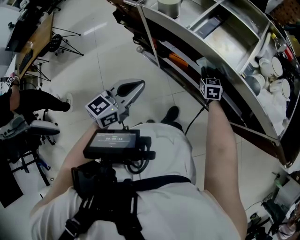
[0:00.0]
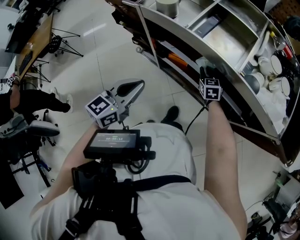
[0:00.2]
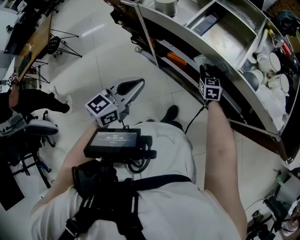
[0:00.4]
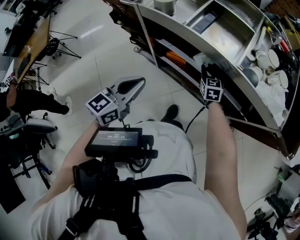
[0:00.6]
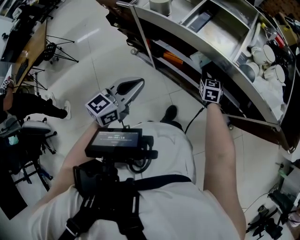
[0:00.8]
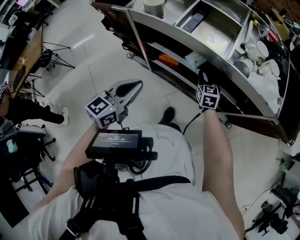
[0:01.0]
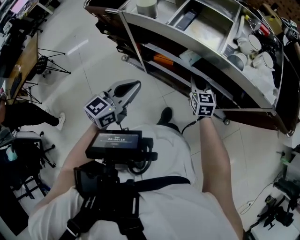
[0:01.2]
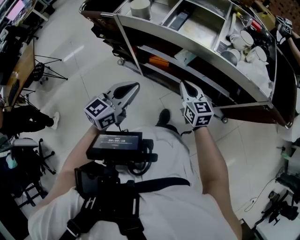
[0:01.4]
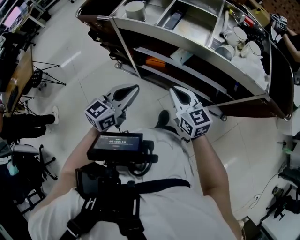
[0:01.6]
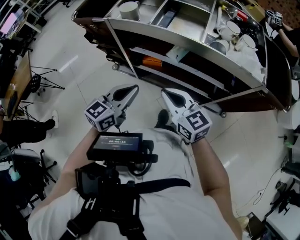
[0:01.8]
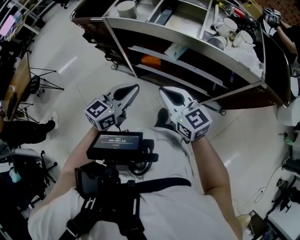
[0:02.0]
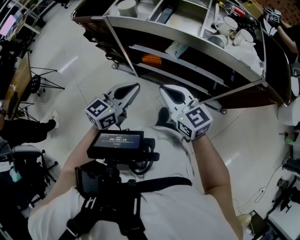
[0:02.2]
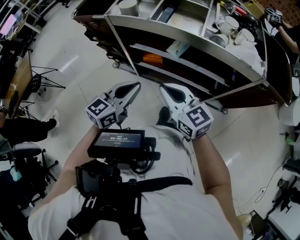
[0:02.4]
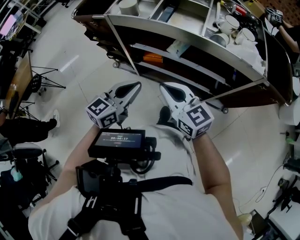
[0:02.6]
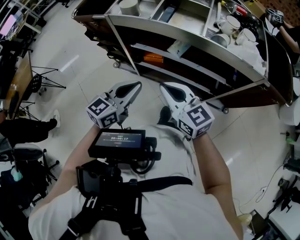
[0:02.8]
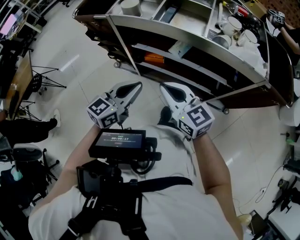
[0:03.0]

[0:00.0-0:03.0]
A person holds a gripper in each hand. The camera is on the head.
0:00.0 to 0:01.6: The right gripper moves backward and upward, approximately 30 cm, and turns by about 30 degrees.
0:01.6 to 0:03.0: The right gripper shifts approximately 5 cm upward.

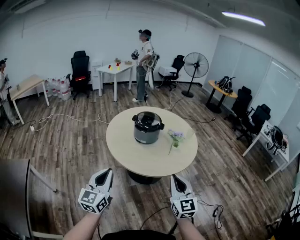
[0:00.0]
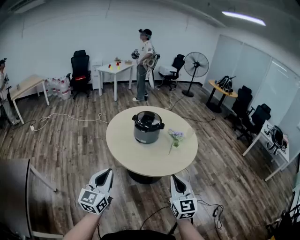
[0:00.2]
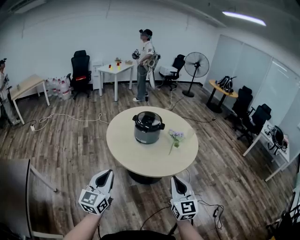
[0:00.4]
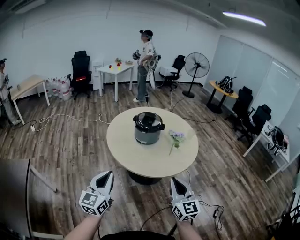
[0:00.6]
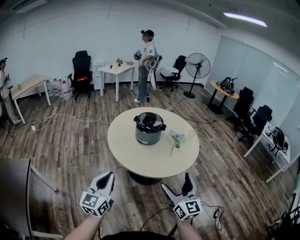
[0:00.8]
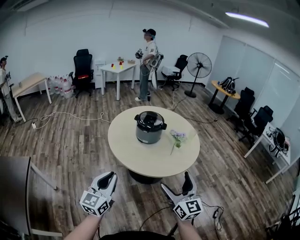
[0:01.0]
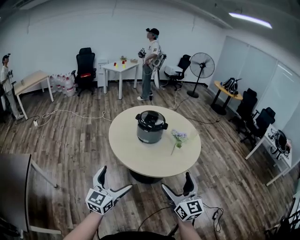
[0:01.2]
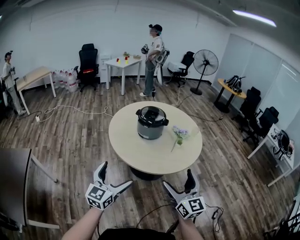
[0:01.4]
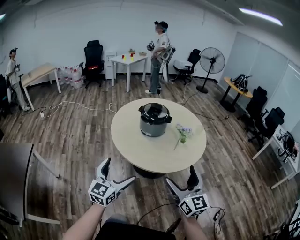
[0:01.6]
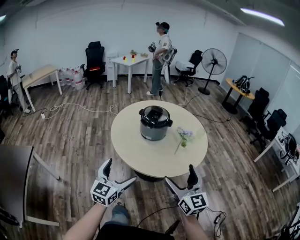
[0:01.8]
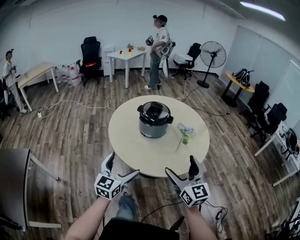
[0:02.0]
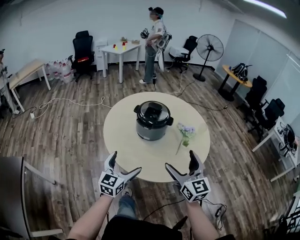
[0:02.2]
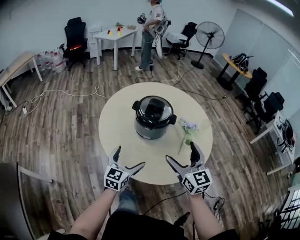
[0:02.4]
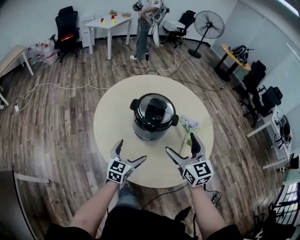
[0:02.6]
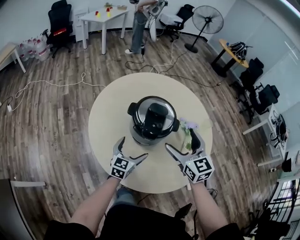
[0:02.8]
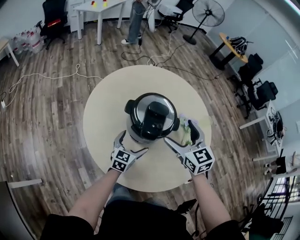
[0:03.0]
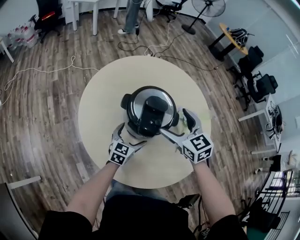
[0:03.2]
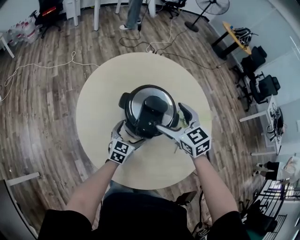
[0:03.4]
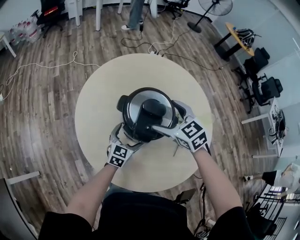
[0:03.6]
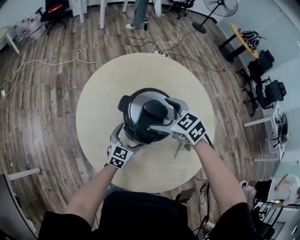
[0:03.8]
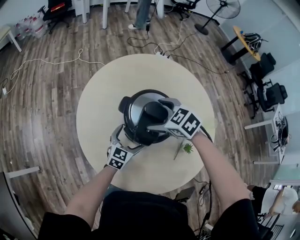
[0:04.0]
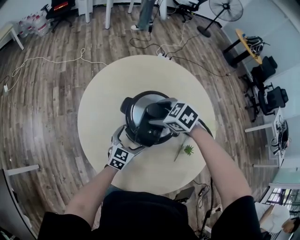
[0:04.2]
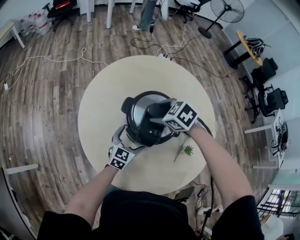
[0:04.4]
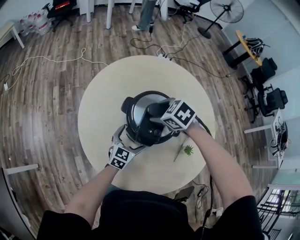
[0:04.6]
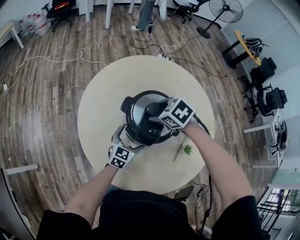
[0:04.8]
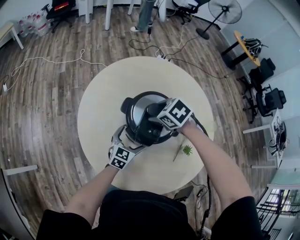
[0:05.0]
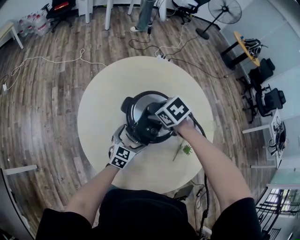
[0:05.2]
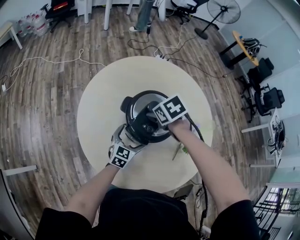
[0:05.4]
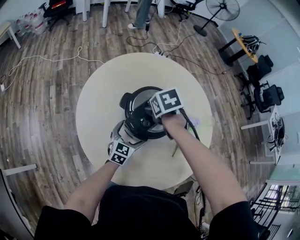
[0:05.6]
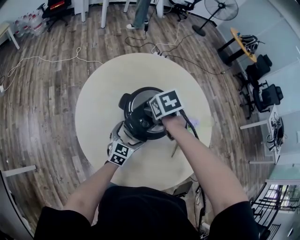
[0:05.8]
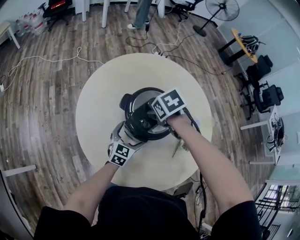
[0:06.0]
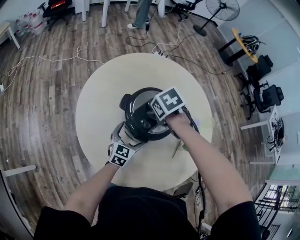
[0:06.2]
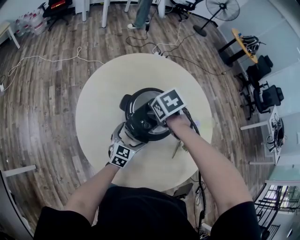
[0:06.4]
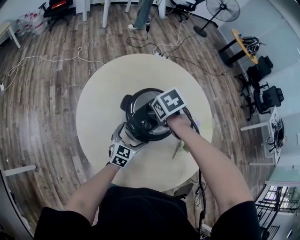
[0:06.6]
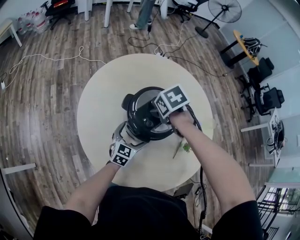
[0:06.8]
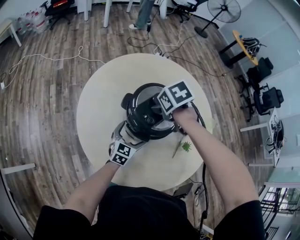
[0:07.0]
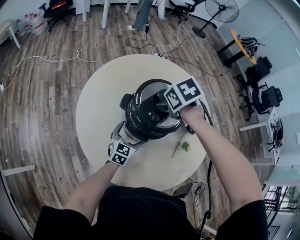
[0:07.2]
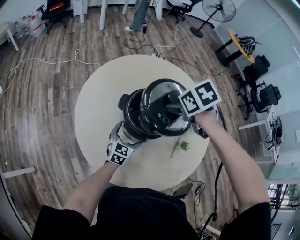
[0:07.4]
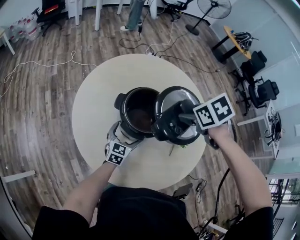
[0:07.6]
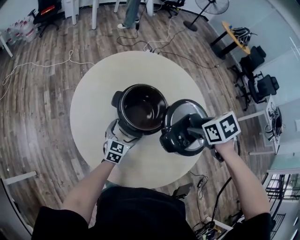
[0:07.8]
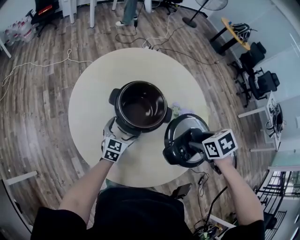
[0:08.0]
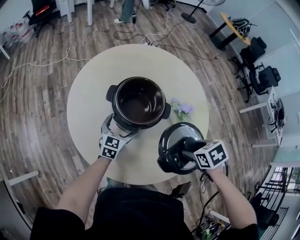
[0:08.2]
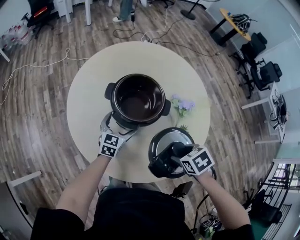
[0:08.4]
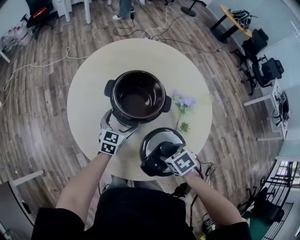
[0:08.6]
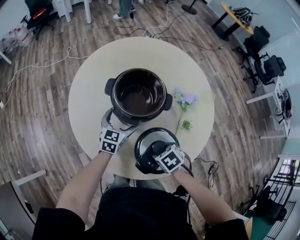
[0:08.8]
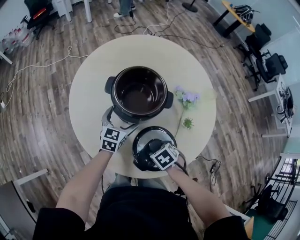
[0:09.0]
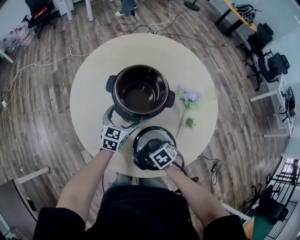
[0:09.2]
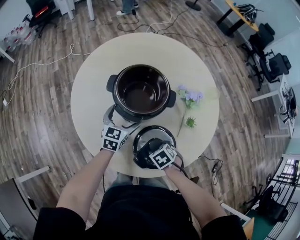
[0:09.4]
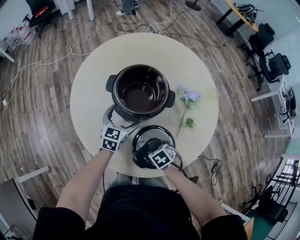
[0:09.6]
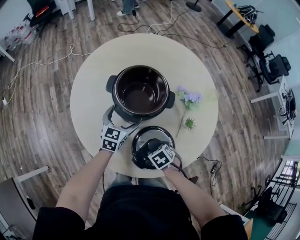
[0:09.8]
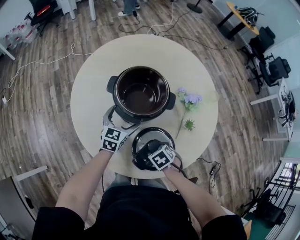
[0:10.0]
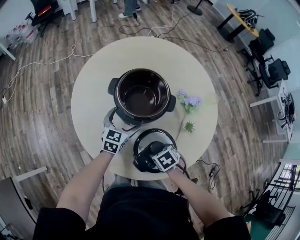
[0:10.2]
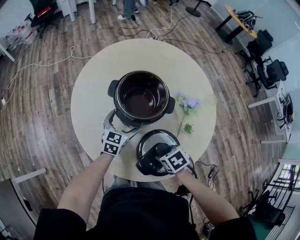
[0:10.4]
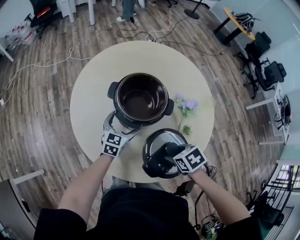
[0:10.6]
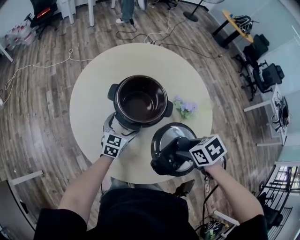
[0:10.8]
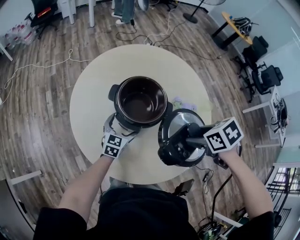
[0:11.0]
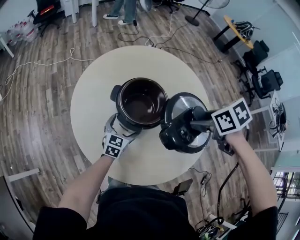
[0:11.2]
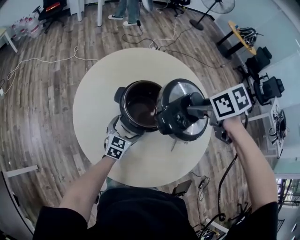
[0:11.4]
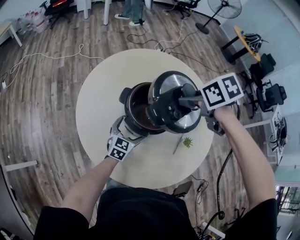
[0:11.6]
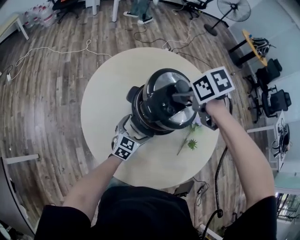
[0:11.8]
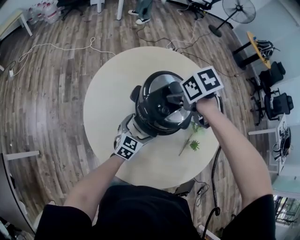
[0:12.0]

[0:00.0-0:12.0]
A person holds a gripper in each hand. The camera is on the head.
0:00.0 to 0:01.6: The right gripper changes place by about 5 cm, and opens its fingers. The left gripper travels to the right and downward by about 10 cm, and opens up.
0:01.6 to 0:03.0: Both grippers are carried forward, about 50 cm. The right gripper turns by some 30 degrees. Meanwhile the left gripper shifts some 25 cm downward, and rotates approximately 30 degrees.
0:03.0 to 0:04.4: The right gripper is displaced forward, downward and to the left by some 20 cm, points its fingers some 40 degrees further downward, and closes up. Meanwhile the left gripper changes place by some 5 cm.
0:04.4 to 0:06.0: The right gripper turns by approximately 30 degrees.
0:06.0 to 0:07.6: The right gripper changes place by roughly 15 cm.
0:07.6 to 0:09.0: The right gripper heads downward, covering roughly 25 cm.
0:09.0 to 0:10.4: The grippers make only small movements.
0:10.4 to 0:12.0: The right gripper shifts by approximately 35 cm.

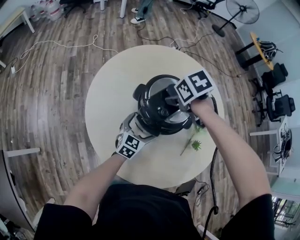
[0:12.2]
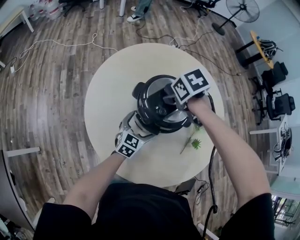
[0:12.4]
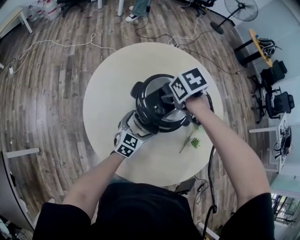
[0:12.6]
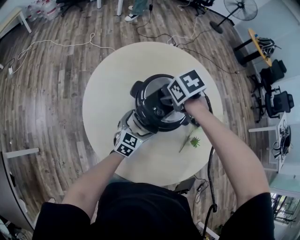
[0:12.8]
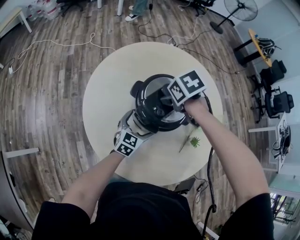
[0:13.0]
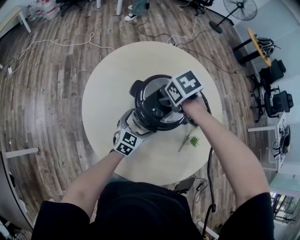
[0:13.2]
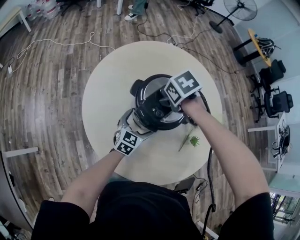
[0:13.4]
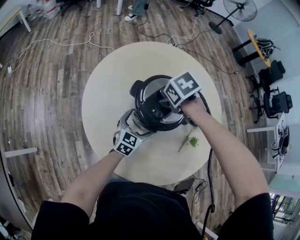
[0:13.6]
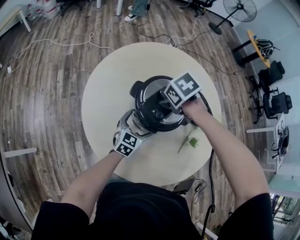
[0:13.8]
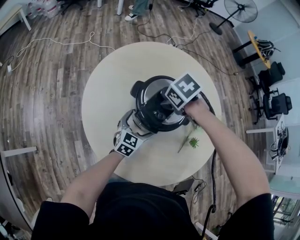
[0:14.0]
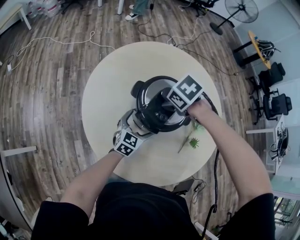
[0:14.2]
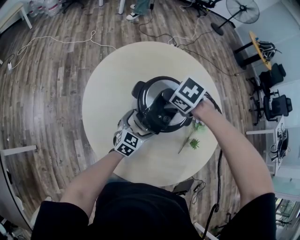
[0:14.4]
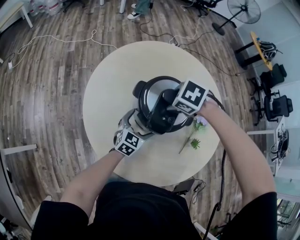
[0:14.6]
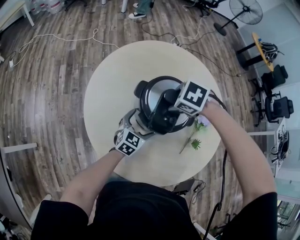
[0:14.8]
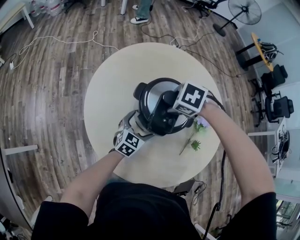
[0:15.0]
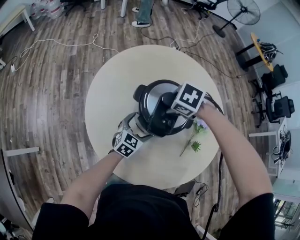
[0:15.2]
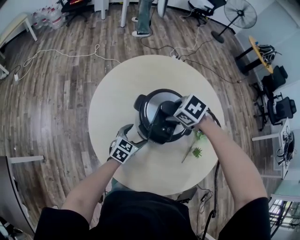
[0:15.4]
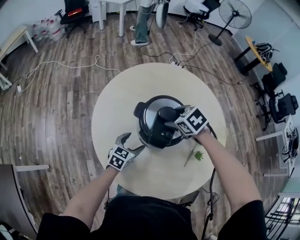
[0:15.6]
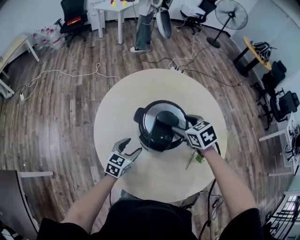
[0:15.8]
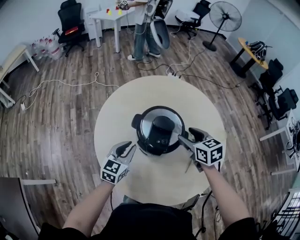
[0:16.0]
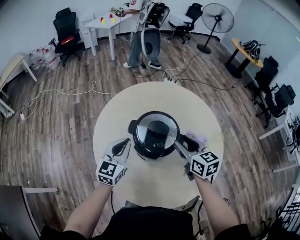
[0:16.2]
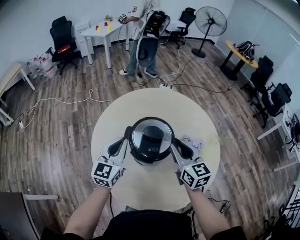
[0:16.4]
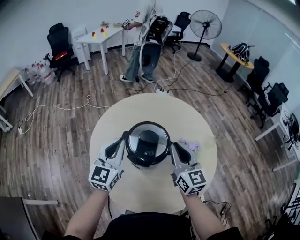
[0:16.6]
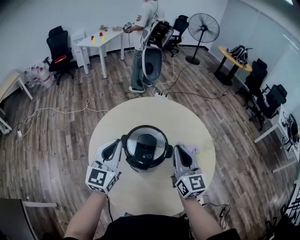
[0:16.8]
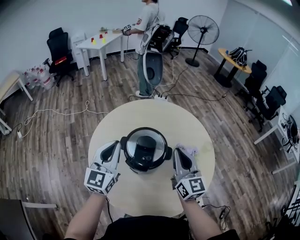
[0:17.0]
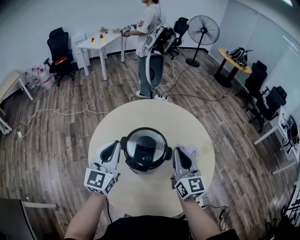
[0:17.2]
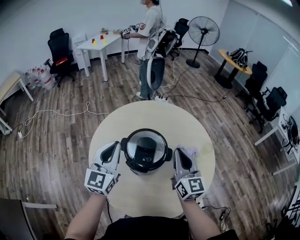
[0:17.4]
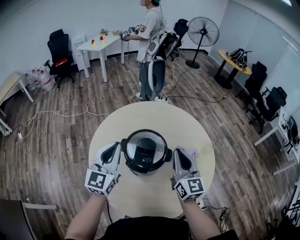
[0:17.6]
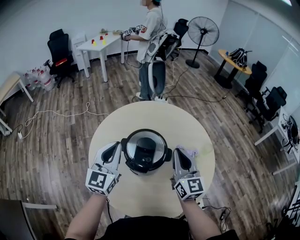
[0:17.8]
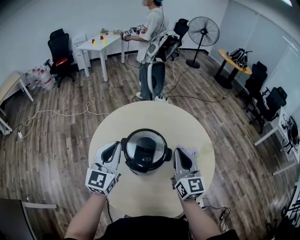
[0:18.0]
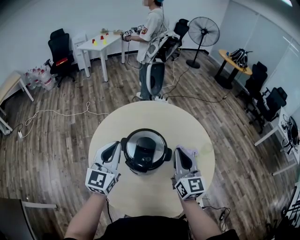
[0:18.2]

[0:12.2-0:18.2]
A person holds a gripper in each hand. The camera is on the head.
0:12.2 to 0:13.8: The grippers stay close to where they were, moving slightly.
0:13.8 to 0:15.2: The right gripper swivels approximately 30 degrees.
0:15.2 to 0:16.6: The right gripper goes approximately 20 cm upward, tips its fingers upward by some 80 degrees, and closes its fingers. The left gripper moves upward, roughly 30 cm, rotates about 30 degrees, and closes.
0:16.6 to 0:18.2: There are only small adjustments of the grippers.

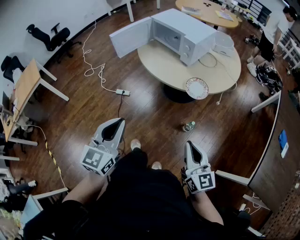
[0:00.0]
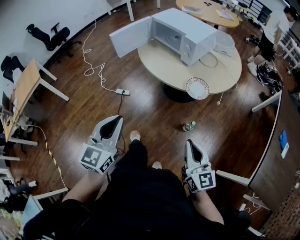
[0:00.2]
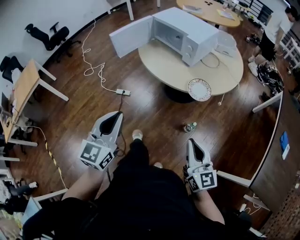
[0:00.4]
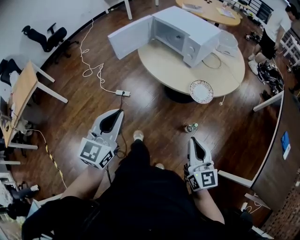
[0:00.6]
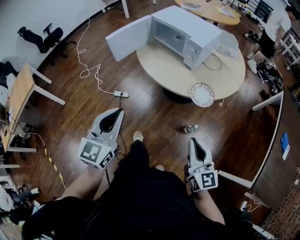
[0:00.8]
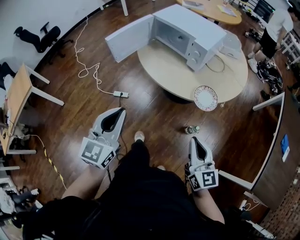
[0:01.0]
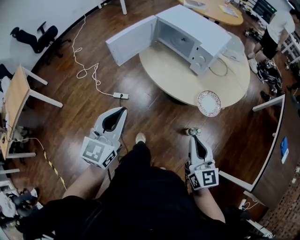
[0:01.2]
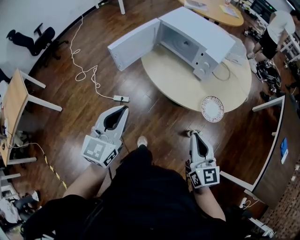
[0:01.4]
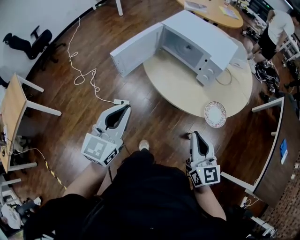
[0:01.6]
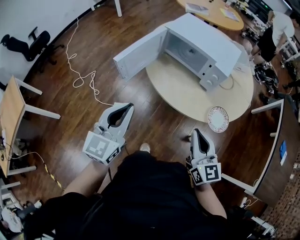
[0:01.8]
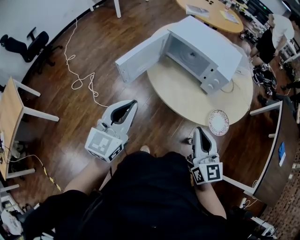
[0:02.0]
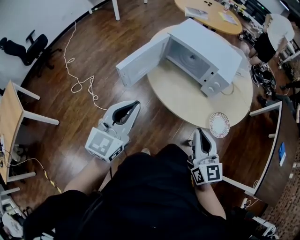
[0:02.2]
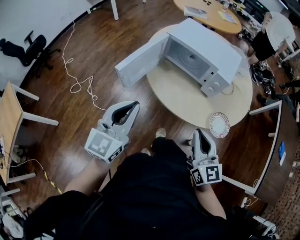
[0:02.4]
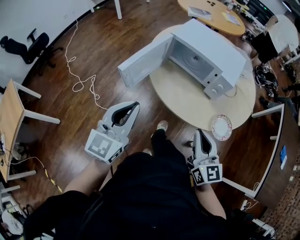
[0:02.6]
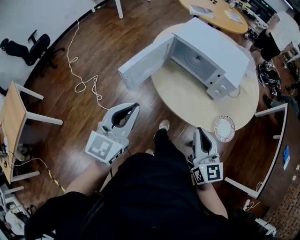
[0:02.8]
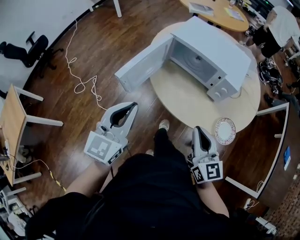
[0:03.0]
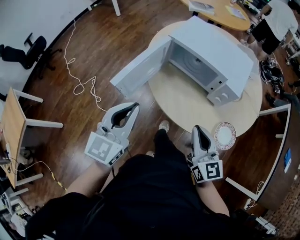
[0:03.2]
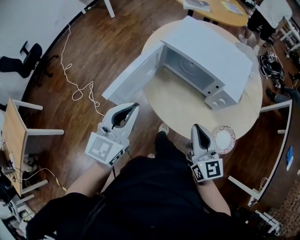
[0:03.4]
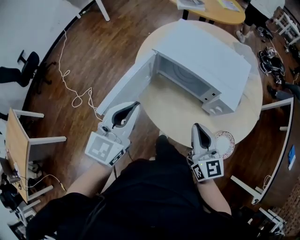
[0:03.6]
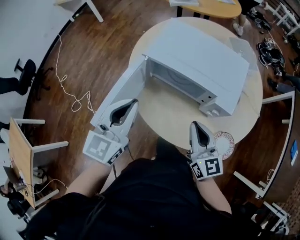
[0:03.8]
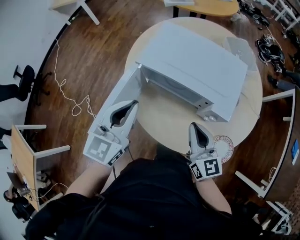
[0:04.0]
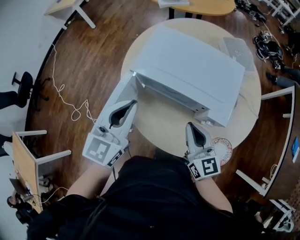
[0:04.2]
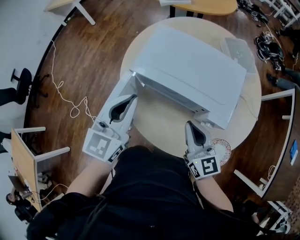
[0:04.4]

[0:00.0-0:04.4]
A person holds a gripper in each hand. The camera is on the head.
0:00.0 to 0:01.4: Both grippers move forward and to the left, about 25 cm.
0:01.4 to 0:03.0: The two grippers go roughly 20 cm forward and to the left.
0:03.0 to 0:04.4: Both grippers move forward, about 25 cm.
